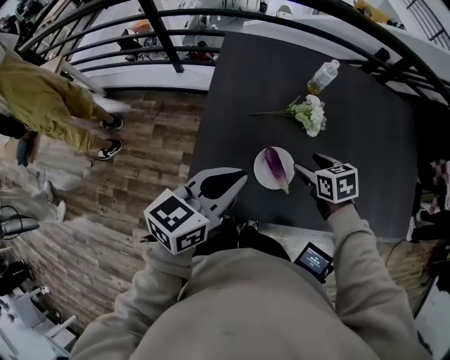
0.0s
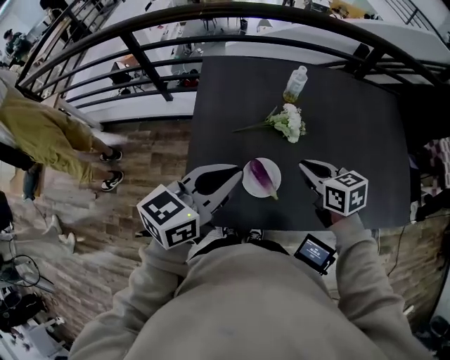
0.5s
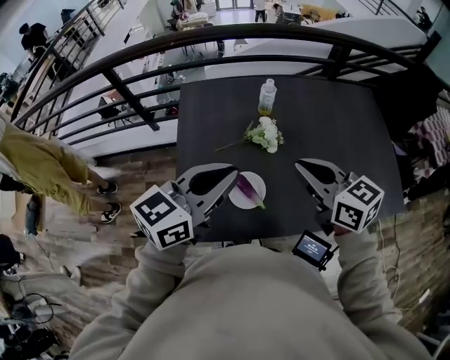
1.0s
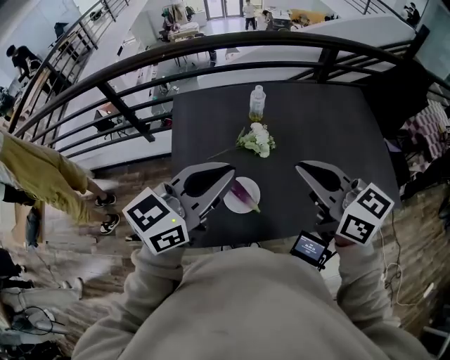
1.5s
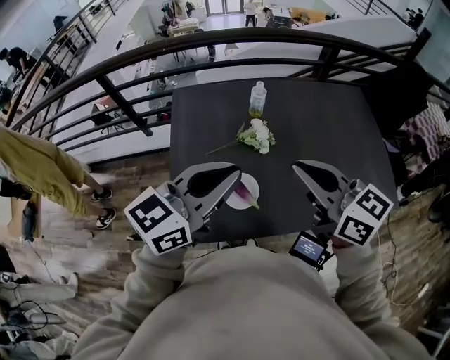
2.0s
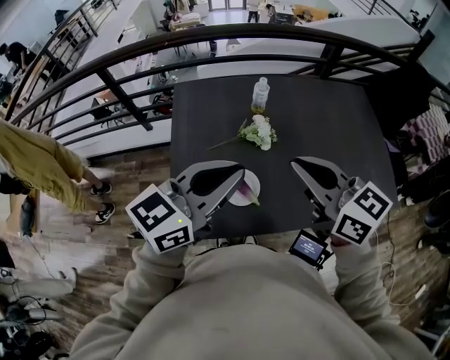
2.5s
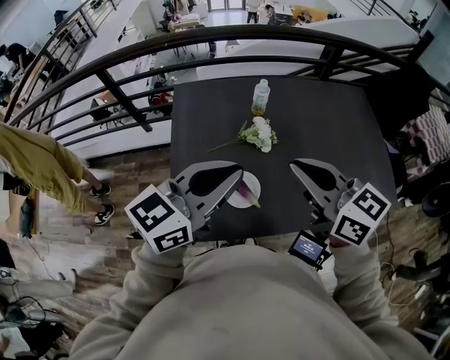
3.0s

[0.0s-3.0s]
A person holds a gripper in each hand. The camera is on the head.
0.0s to 1.5s: The left gripper shifts about 15 cm upward and to the right, and swivels some 20 degrees, while the right gripper heads upward, covering approximately 30 cm, tilts its fingers approximately 50 degrees upward, and closes its fingers.
1.5s to 3.0s: The grippers stay close to where they were, moving slightly.

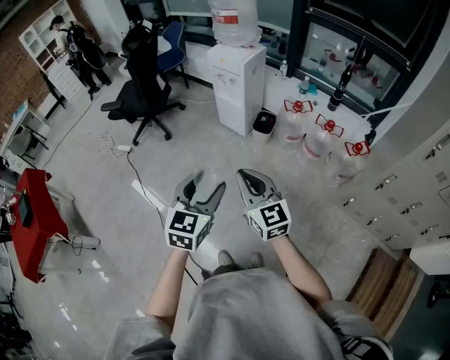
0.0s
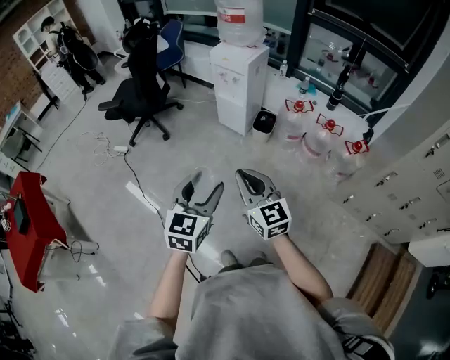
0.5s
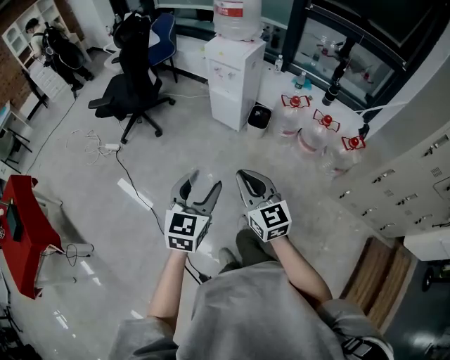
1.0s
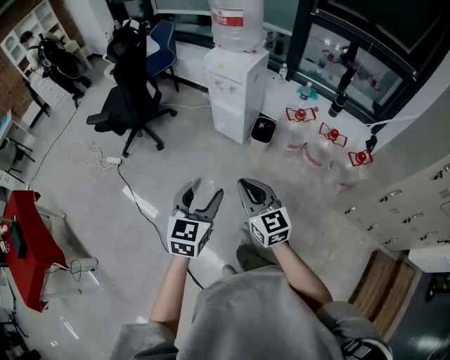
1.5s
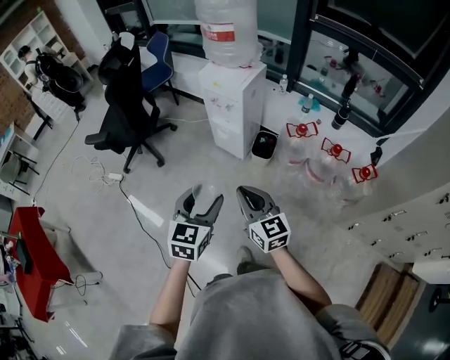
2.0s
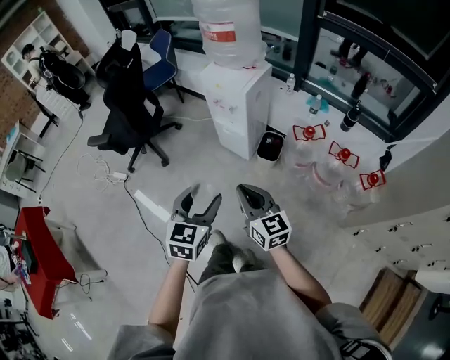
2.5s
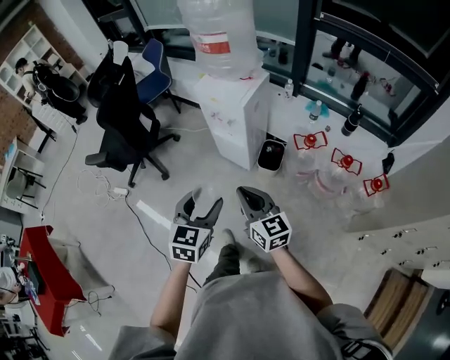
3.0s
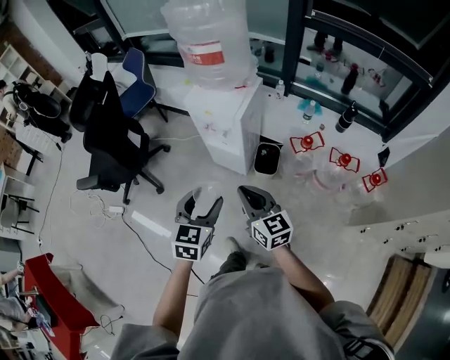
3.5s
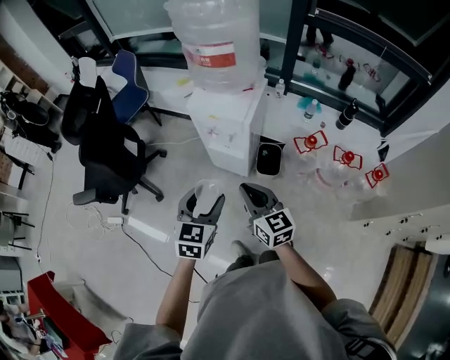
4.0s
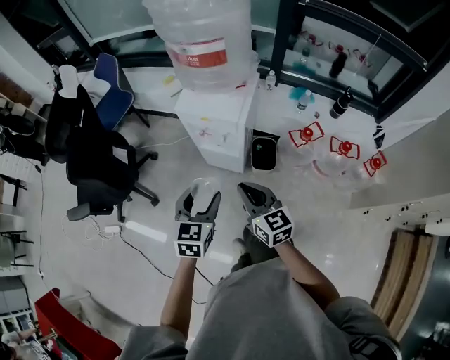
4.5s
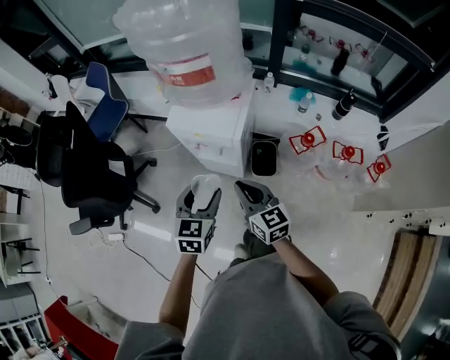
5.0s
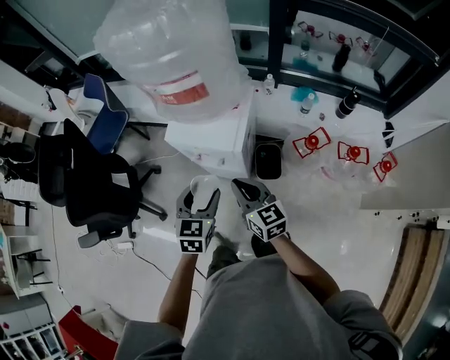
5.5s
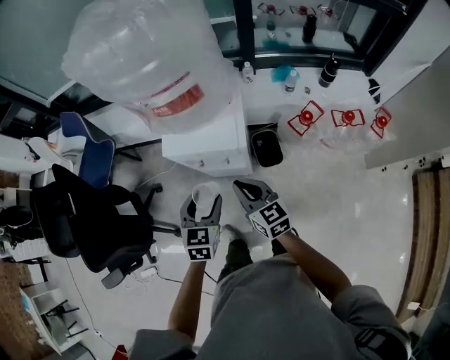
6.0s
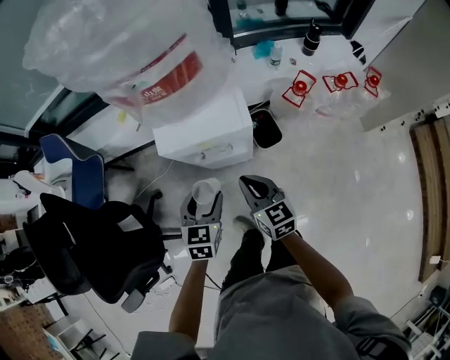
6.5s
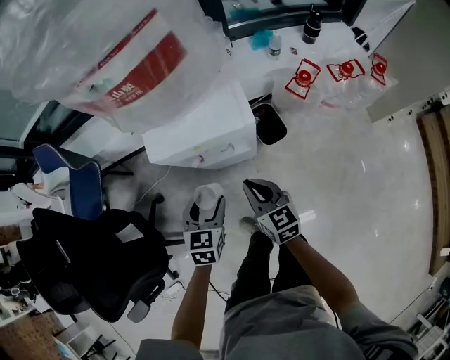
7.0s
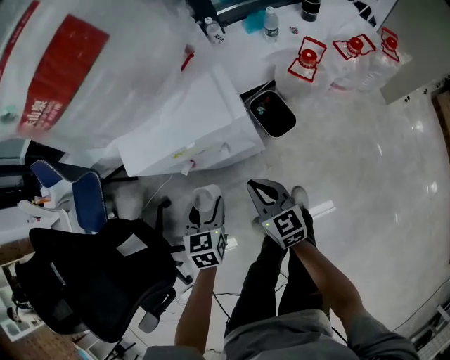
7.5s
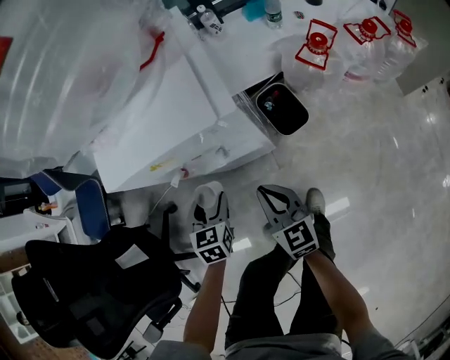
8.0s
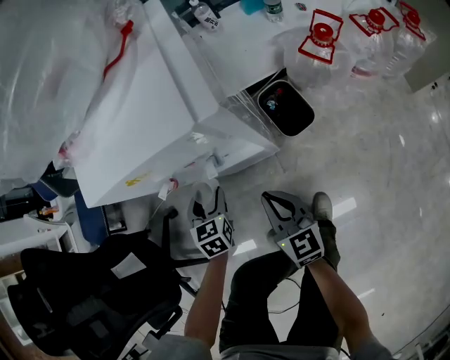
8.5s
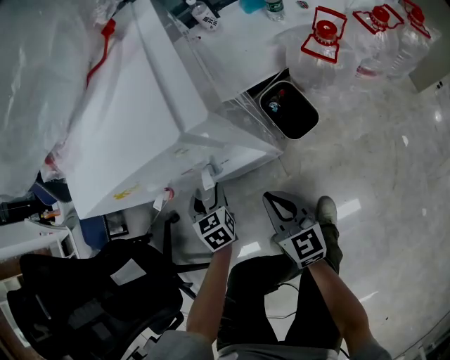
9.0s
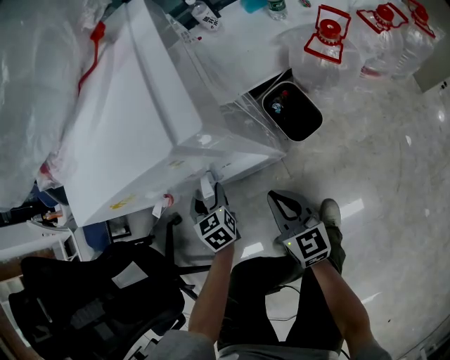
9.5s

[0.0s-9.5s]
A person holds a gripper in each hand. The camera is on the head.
0.0s to 2.0s: Both grippers move forward, roughly 25 cm.
2.0s to 4.0s: Both grippers move forward, about 30 cm.
4.0s to 5.5s: The two grippers go approximately 20 cm forward.
5.5s to 7.5s: The two grippers go approximately 25 cm downward. The left gripper rotates about 20 degrees; the right gripper turns by about 30 degrees.
7.5s to 9.5s: The right gripper travels downward by roughly 15 cm, while the left gripper heads downward and forward, covering some 25 cm.

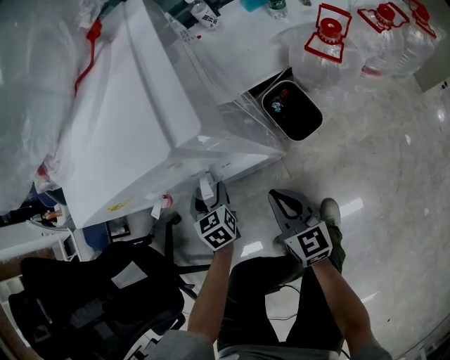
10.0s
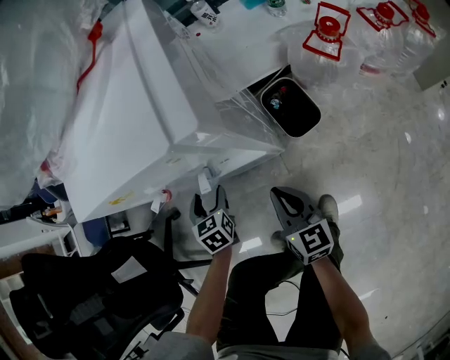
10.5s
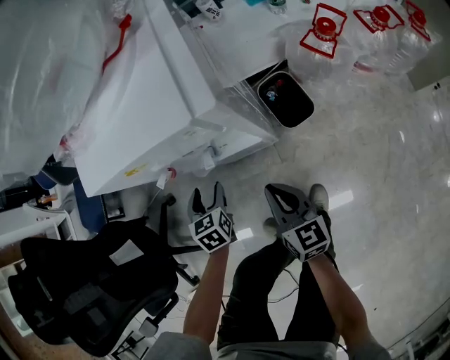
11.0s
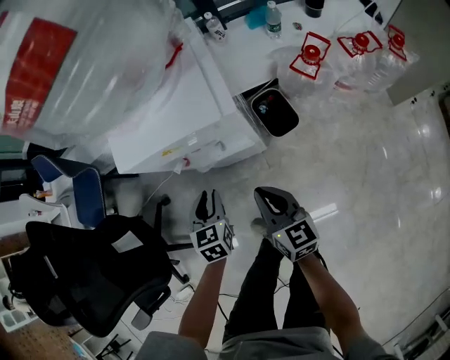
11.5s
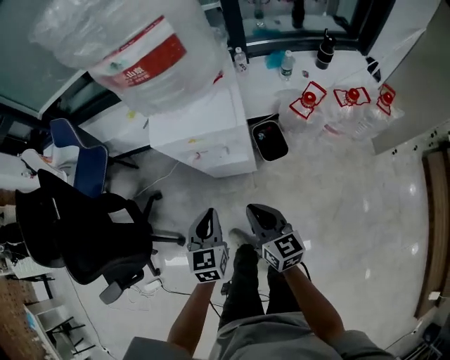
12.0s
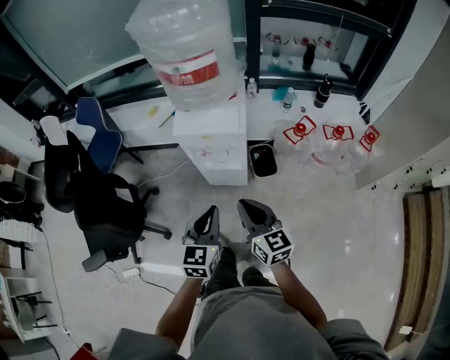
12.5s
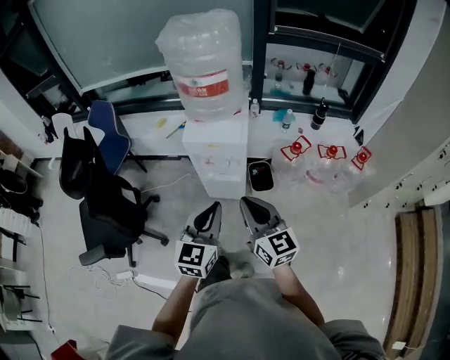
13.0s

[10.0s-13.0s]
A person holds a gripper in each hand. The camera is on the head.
10.0s to 11.5s: The left gripper shifts about 20 cm upward and backward, and closes. Meanwhile the right gripper shifts roughly 15 cm upward.
11.5s to 13.0s: Both grippers travel together upward and backward, approximately 40 cm. The left gripper tips its fingers upward by some 30 degrees. The right gripper changes its angle by approximately 30 degrees.

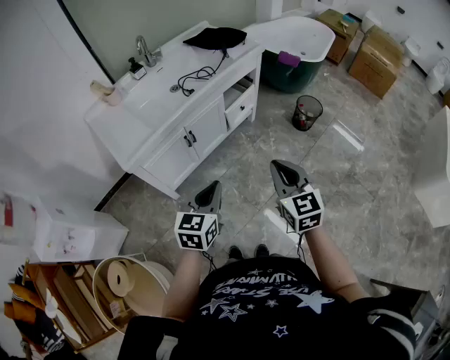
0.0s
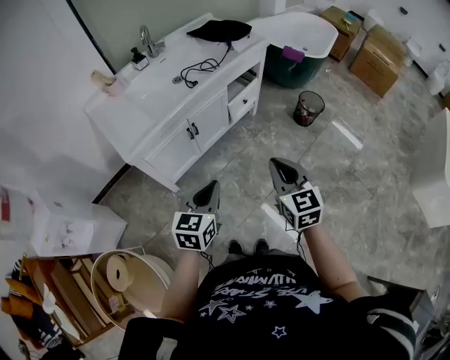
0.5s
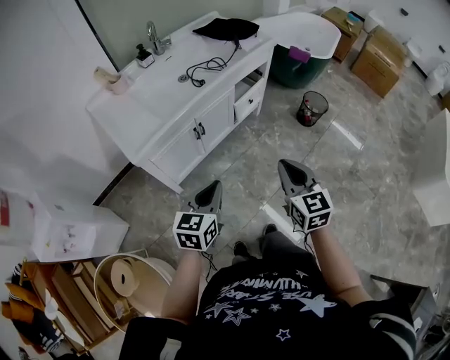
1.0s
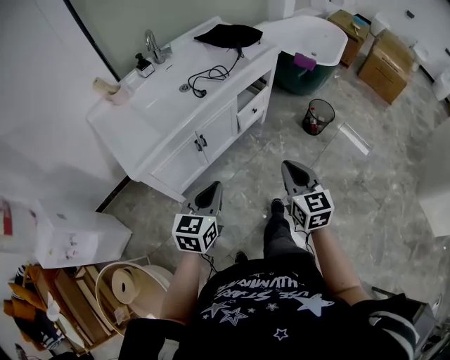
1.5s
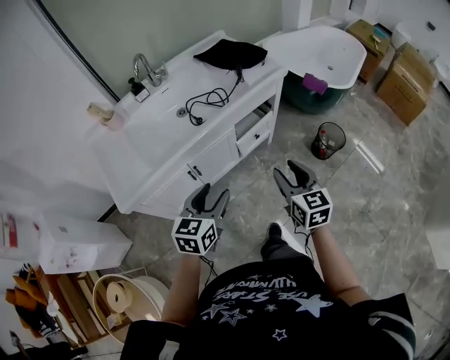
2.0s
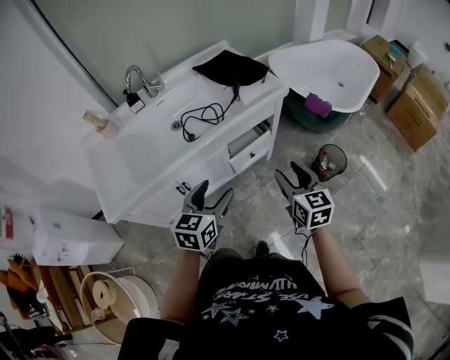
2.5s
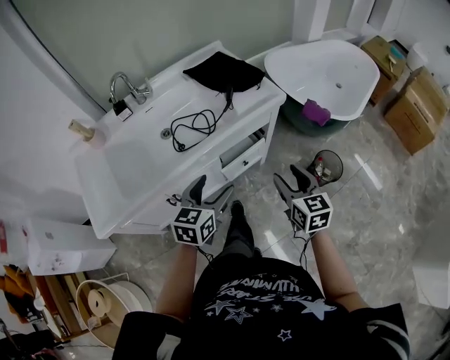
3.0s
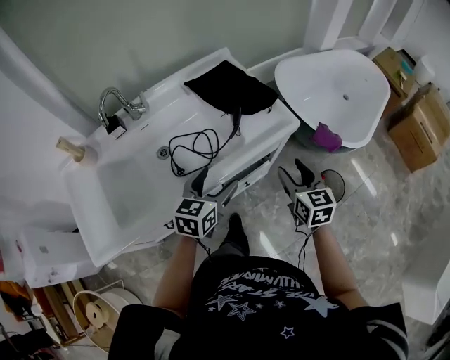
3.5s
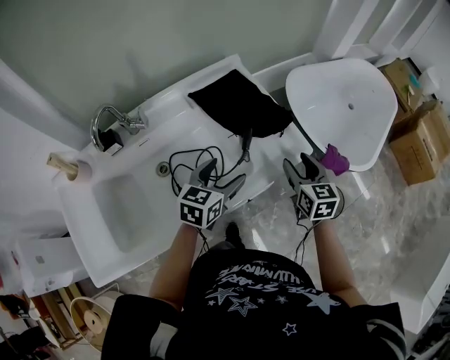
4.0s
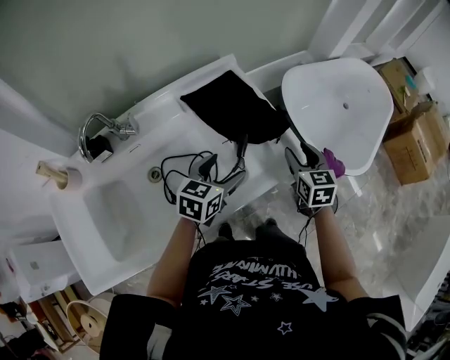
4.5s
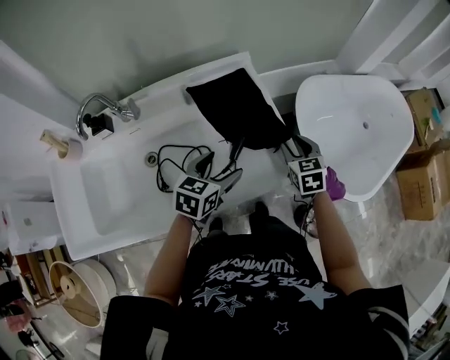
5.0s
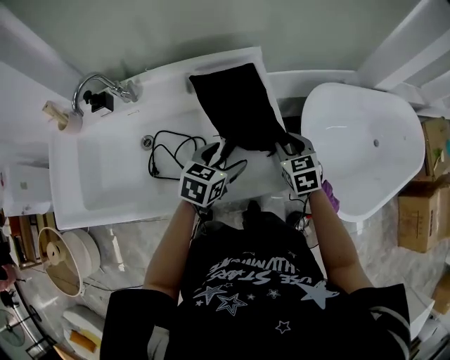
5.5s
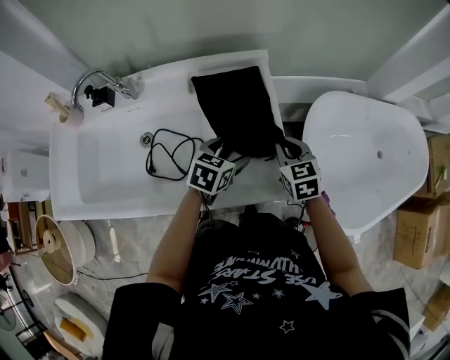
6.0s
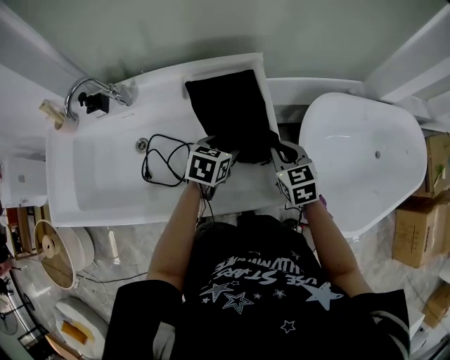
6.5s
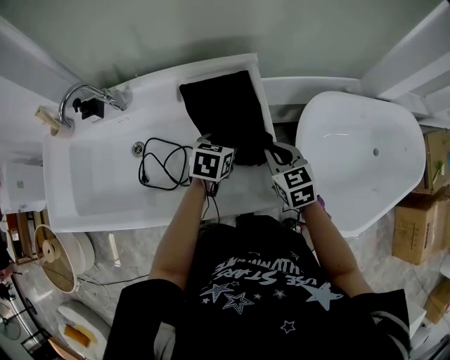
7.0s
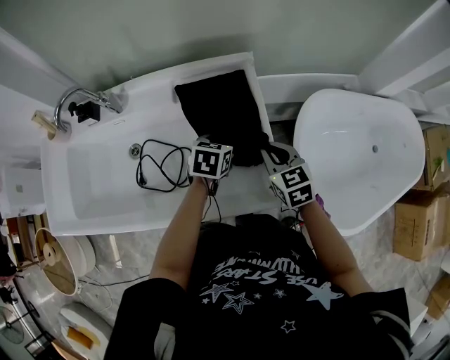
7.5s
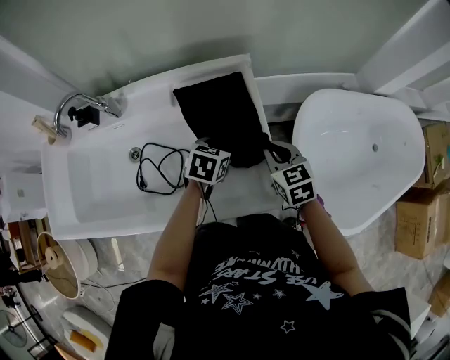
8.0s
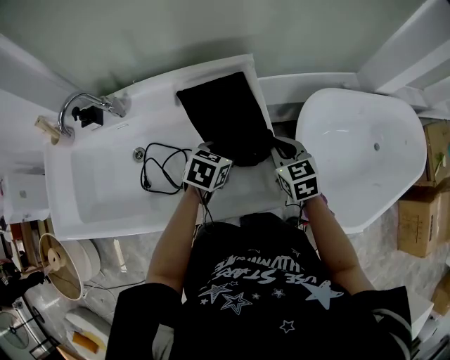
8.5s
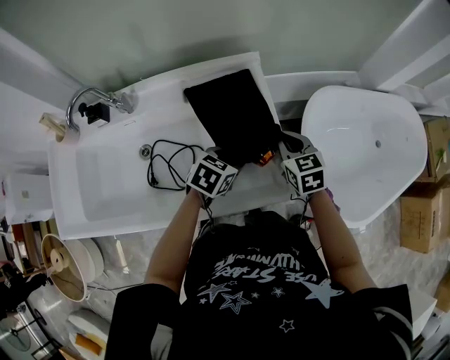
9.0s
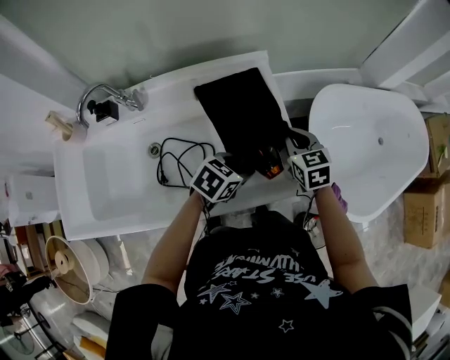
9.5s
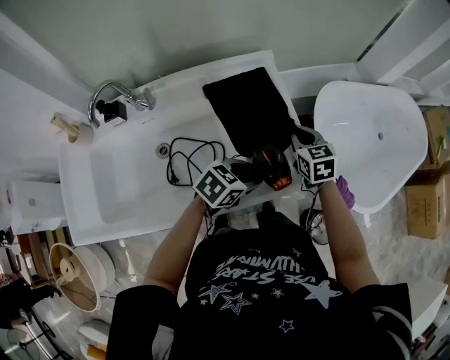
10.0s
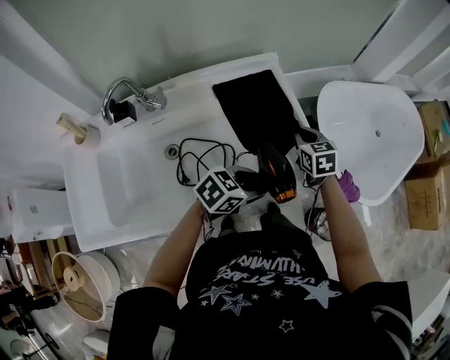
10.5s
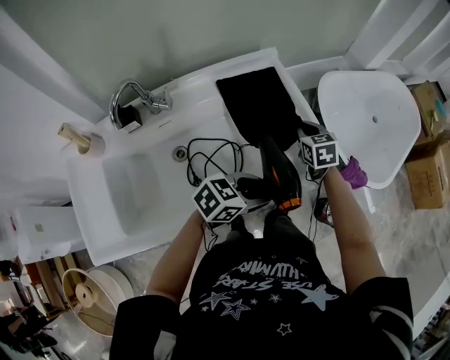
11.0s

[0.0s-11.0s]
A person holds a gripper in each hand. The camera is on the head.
0.0s to 2.0s: Both grippers travel together forward, about 25 cm. The left gripper opens. The right gripper opens.
2.0s to 3.5s: The grippers both shift forward by approximately 35 cm. The left gripper opens its fingers.
3.5s to 5.5s: Both grippers move forward, some 25 cm. The right gripper changes its angle by about 40 degrees.
5.5s to 7.5s: The left gripper goes roughly 10 cm forward and downward, and closes its fingers. The right gripper closes.
7.5s to 9.0s: The left gripper travels backward by roughly 5 cm, and rotates approximately 20 degrees.
9.0s to 11.0s: The right gripper ends up approximately 10 cm from where it was, while the left gripper ends up roughly 20 cm from where it was, and rotates approximately 40 degrees.
